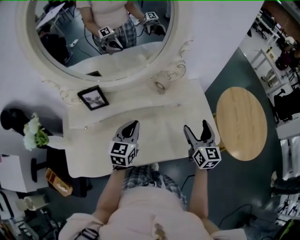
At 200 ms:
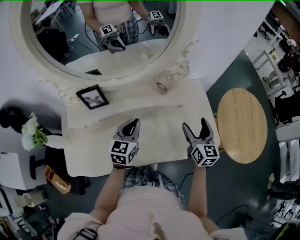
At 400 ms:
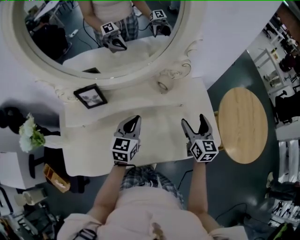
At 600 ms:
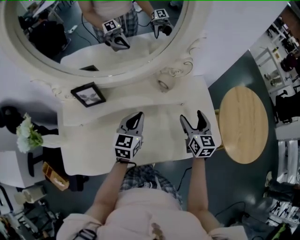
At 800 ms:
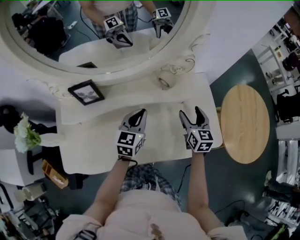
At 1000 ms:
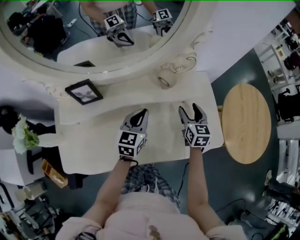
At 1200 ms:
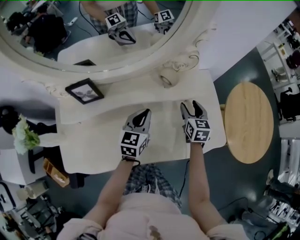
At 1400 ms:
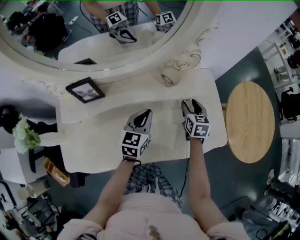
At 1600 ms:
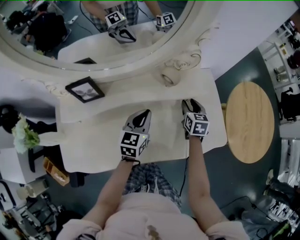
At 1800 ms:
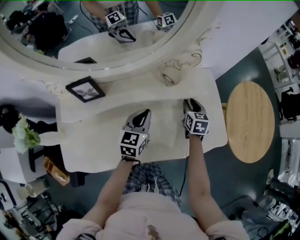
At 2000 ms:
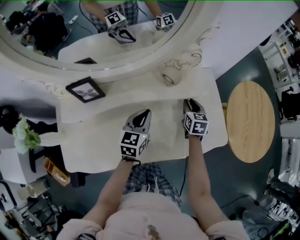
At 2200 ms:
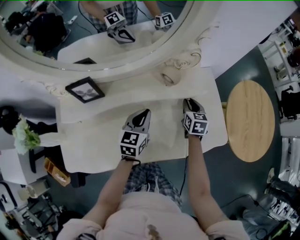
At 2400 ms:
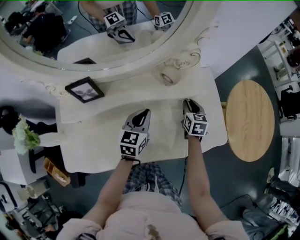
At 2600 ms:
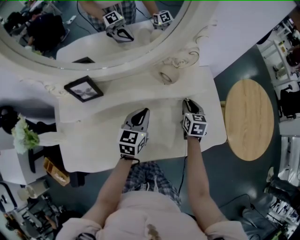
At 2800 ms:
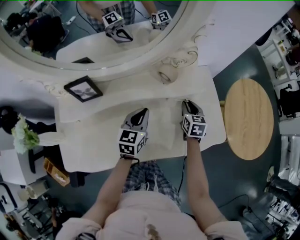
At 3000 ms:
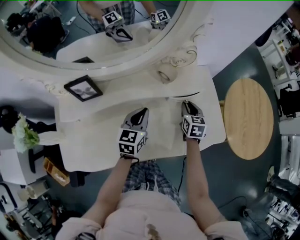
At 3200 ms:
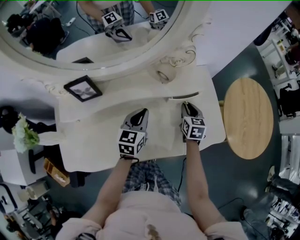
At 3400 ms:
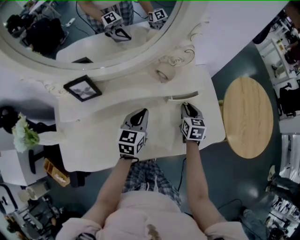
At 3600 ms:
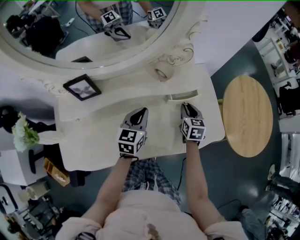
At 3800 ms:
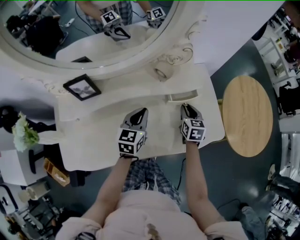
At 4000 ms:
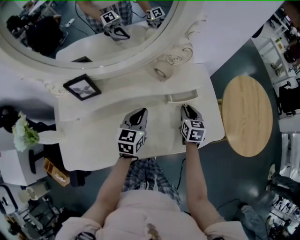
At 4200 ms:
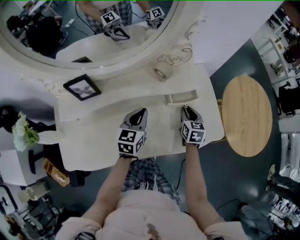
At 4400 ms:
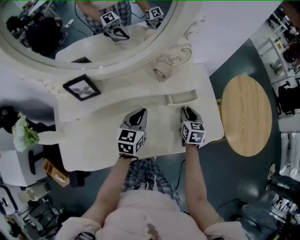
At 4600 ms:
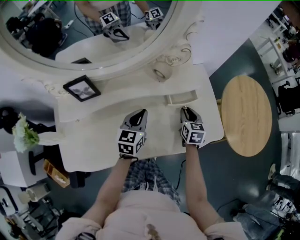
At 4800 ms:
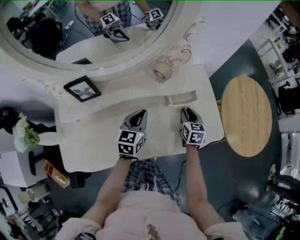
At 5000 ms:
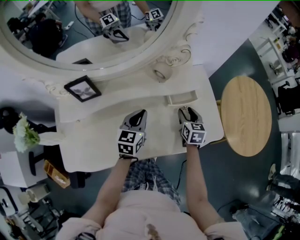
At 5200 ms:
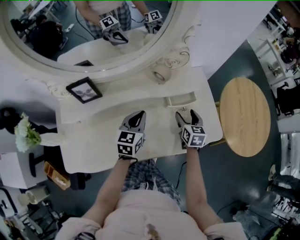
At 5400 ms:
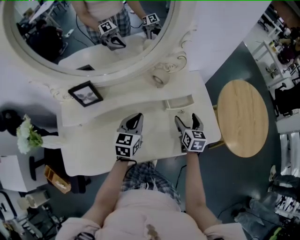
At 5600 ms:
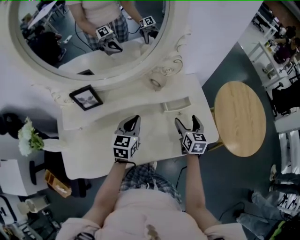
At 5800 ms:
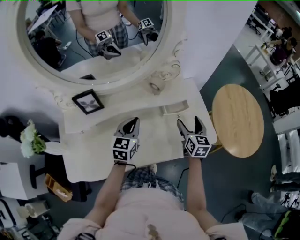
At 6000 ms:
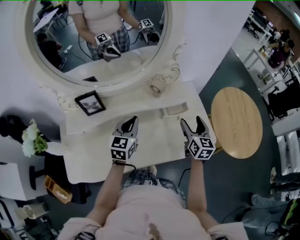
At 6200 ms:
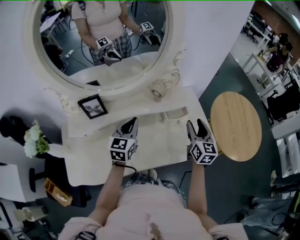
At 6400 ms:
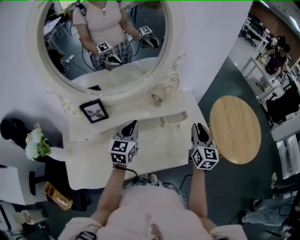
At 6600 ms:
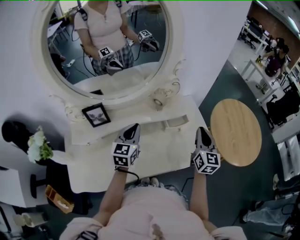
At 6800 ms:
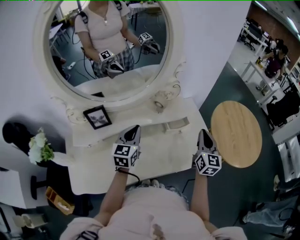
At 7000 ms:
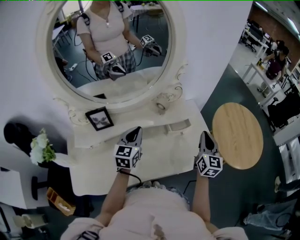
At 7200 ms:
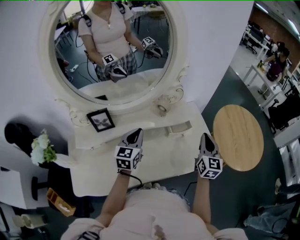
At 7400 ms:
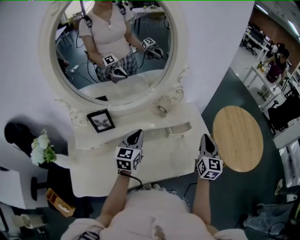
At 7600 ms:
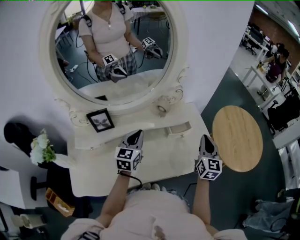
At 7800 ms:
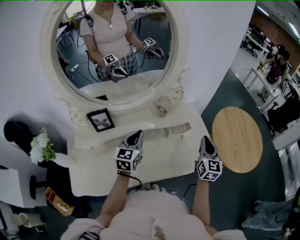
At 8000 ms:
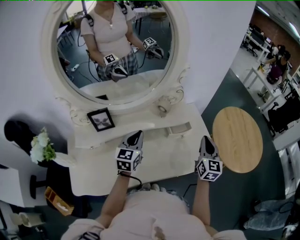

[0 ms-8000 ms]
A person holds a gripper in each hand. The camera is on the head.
0 ms to 1600 ms: The right gripper heads downward and forward, covering approximately 20 cm, rotates approximately 30 degrees, and closes its fingers; the left gripper moves downward and forward, approximately 10 cm.
1600 ms to 3200 ms: The grippers make only small movements.
3200 ms to 4800 ms: The grippers make only small movements.
4800 ms to 6400 ms: The right gripper moves upward, roughly 20 cm, swivels approximately 30 degrees, and opens, then closes again. Meanwhile the left gripper heads upward, covering roughly 10 cm.
6400 ms to 8000 ms: The grippers make only small movements.

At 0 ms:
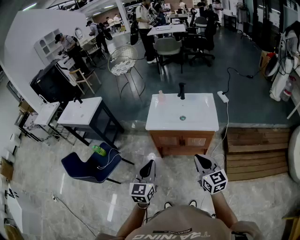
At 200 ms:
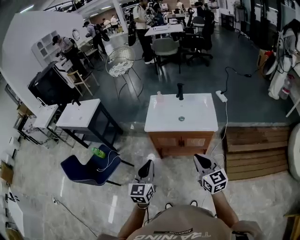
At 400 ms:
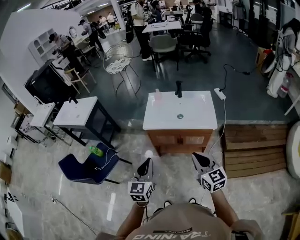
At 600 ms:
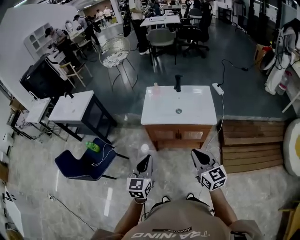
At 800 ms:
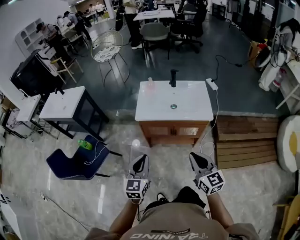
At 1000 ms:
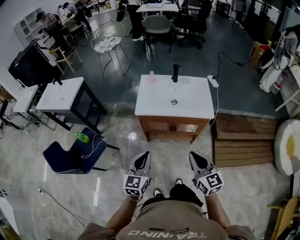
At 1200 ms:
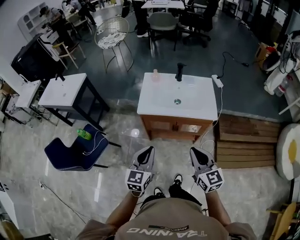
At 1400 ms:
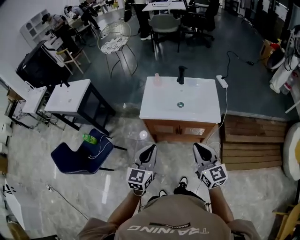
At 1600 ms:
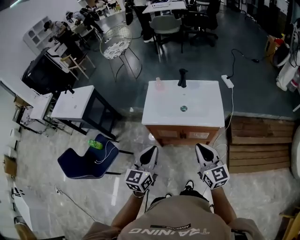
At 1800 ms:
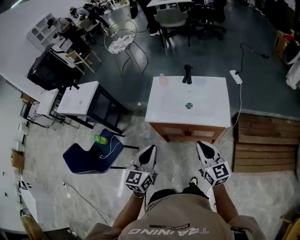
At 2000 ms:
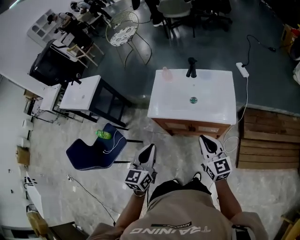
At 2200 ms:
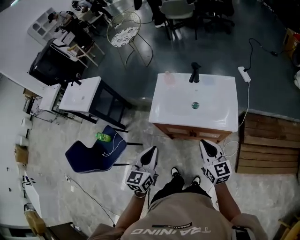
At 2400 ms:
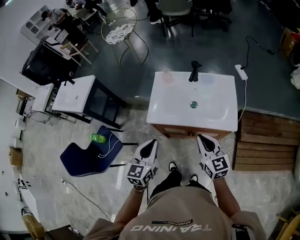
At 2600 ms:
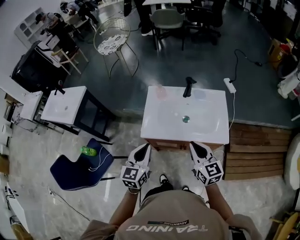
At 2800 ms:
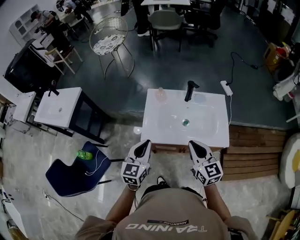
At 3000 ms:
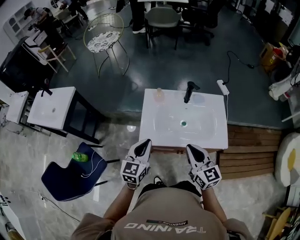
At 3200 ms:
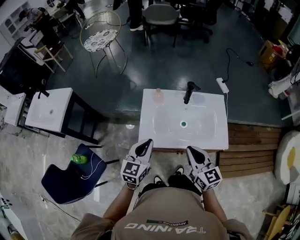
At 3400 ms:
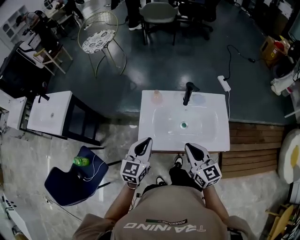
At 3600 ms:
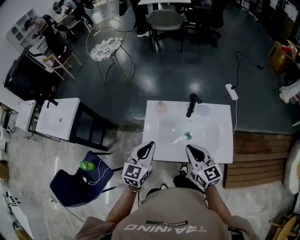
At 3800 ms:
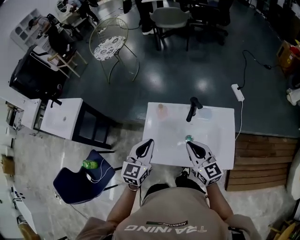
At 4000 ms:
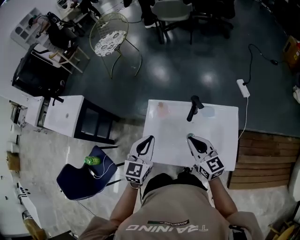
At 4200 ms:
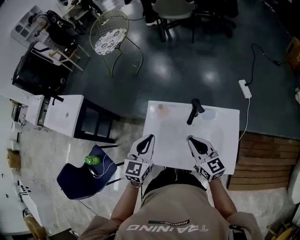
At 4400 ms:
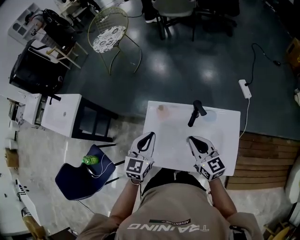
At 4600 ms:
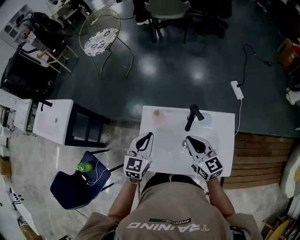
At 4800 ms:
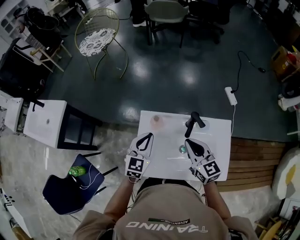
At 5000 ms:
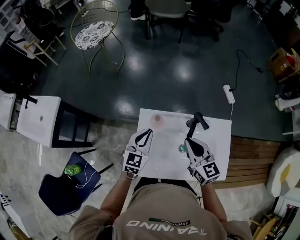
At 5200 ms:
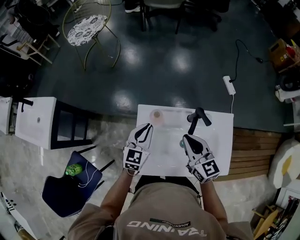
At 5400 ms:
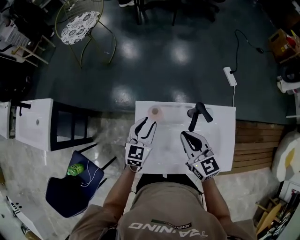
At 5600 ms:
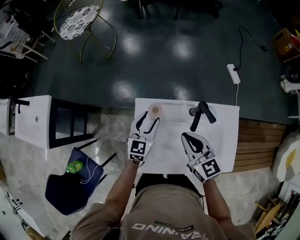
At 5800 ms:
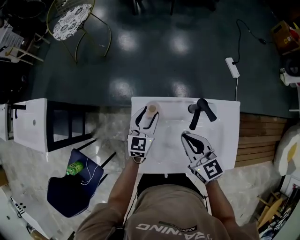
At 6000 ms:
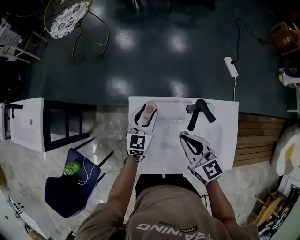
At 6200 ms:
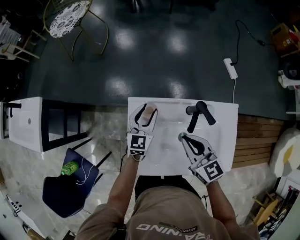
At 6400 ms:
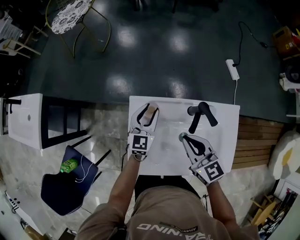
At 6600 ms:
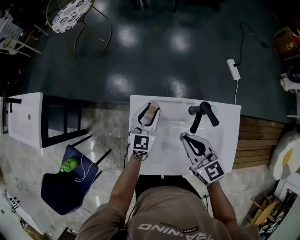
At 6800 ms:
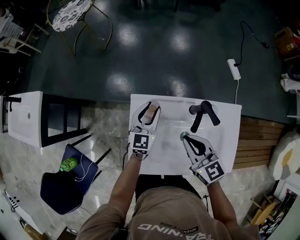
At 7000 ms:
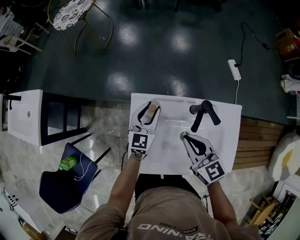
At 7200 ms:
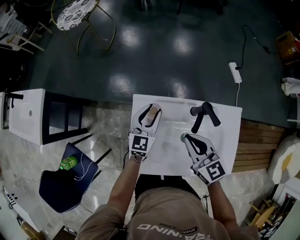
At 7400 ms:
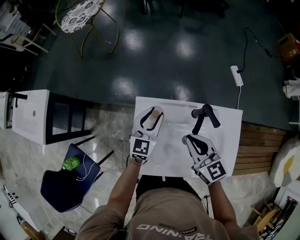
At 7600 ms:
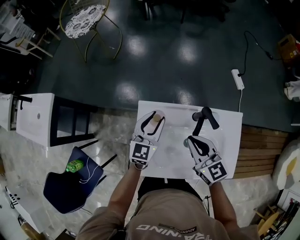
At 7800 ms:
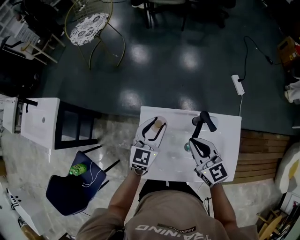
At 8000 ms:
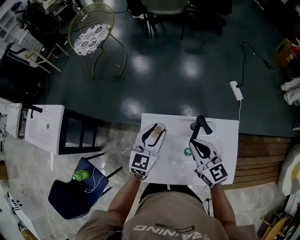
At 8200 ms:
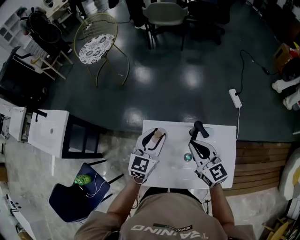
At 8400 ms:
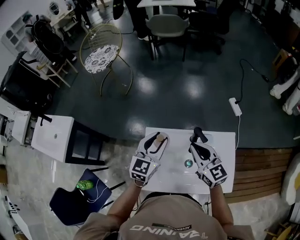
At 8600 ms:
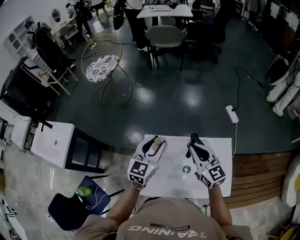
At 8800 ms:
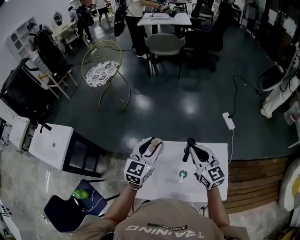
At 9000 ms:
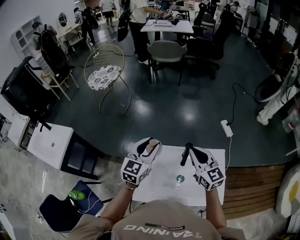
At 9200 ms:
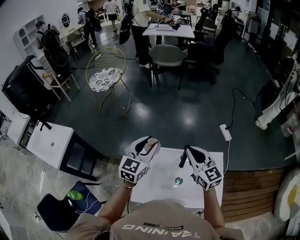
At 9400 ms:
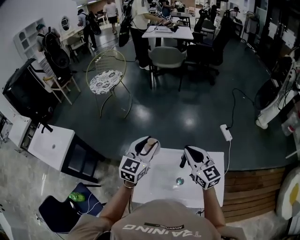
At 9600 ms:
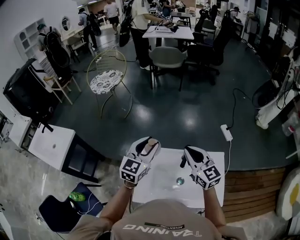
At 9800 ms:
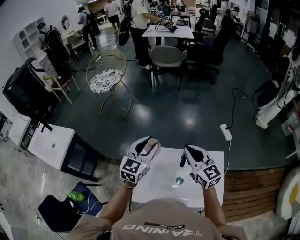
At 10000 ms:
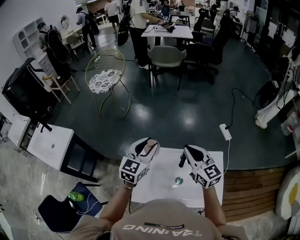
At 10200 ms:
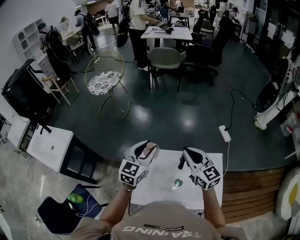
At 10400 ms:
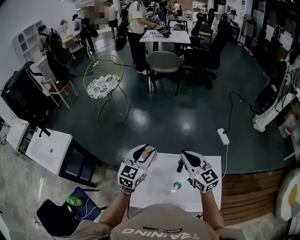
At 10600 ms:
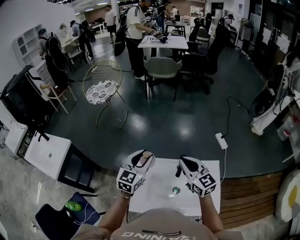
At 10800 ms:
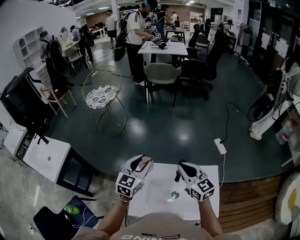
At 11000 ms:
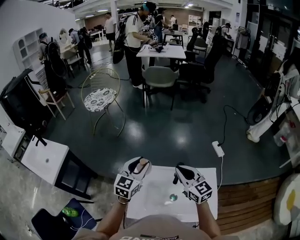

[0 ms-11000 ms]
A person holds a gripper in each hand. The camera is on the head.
0 ms to 1600 ms: The two grippers go approximately 10 cm forward.
1600 ms to 3200 ms: The left gripper heads forward, covering approximately 25 cm, while the right gripper goes roughly 25 cm forward and to the left.
3200 ms to 4800 ms: Both grippers move forward, about 25 cm.
4800 ms to 6200 ms: The left gripper is displaced downward and forward by approximately 15 cm, and opens its fingers, while the right gripper goes roughly 5 cm downward.
6200 ms to 7800 ms: The left gripper is displaced upward by approximately 10 cm.
7800 ms to 9400 ms: Both grippers travel together upward, about 15 cm.
9400 ms to 11000 ms: The grippers move only a little.

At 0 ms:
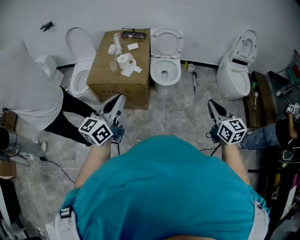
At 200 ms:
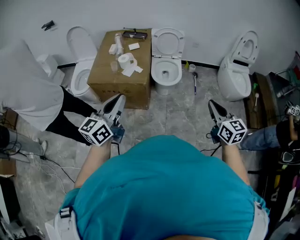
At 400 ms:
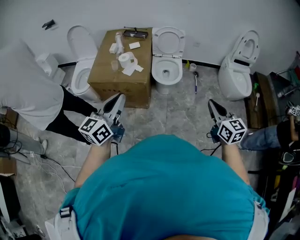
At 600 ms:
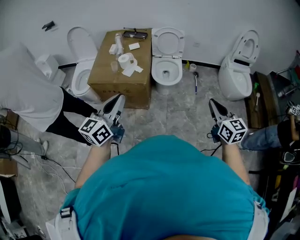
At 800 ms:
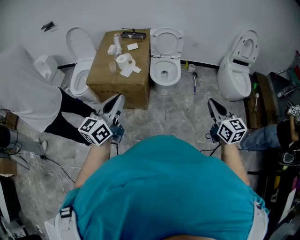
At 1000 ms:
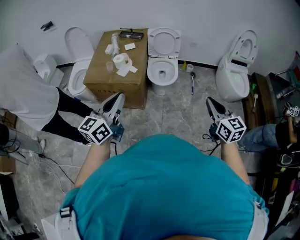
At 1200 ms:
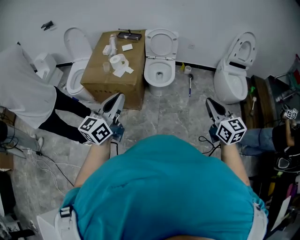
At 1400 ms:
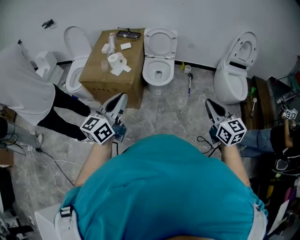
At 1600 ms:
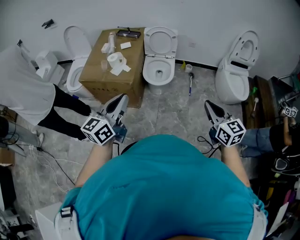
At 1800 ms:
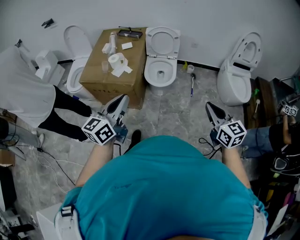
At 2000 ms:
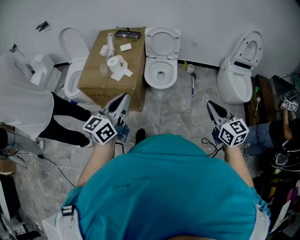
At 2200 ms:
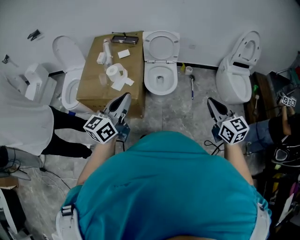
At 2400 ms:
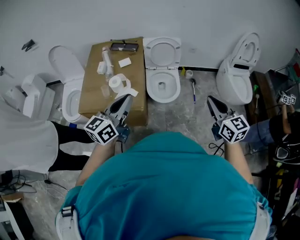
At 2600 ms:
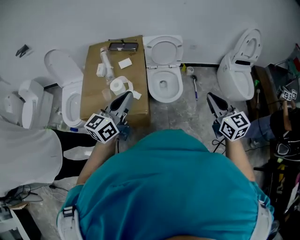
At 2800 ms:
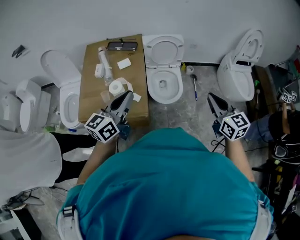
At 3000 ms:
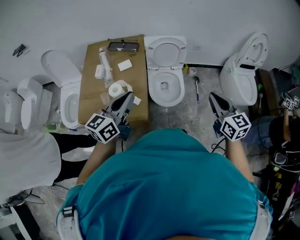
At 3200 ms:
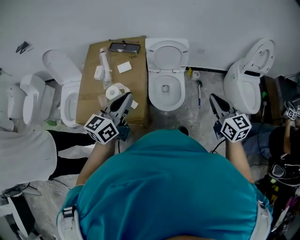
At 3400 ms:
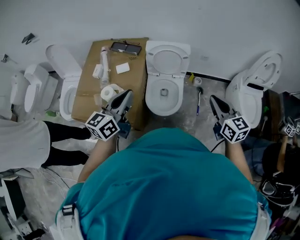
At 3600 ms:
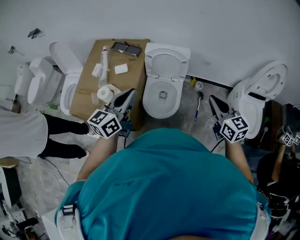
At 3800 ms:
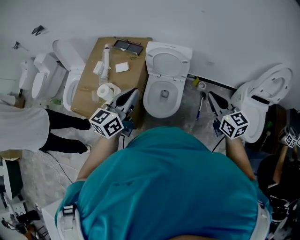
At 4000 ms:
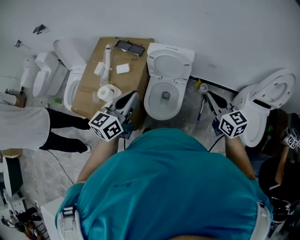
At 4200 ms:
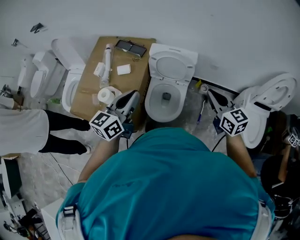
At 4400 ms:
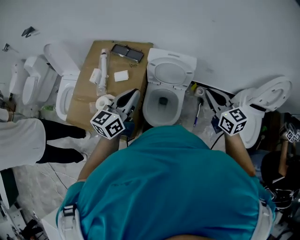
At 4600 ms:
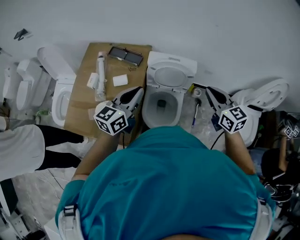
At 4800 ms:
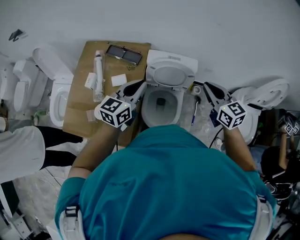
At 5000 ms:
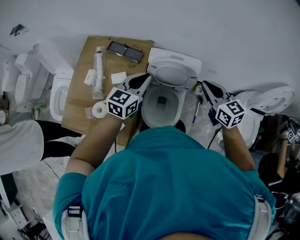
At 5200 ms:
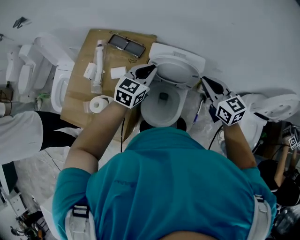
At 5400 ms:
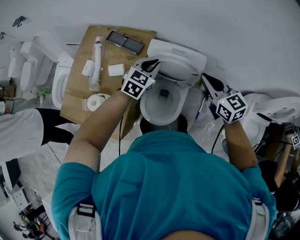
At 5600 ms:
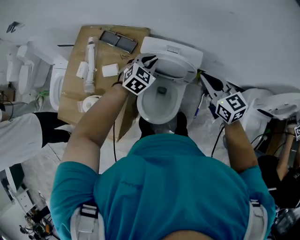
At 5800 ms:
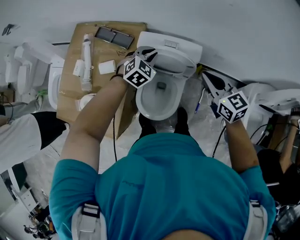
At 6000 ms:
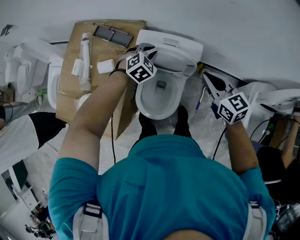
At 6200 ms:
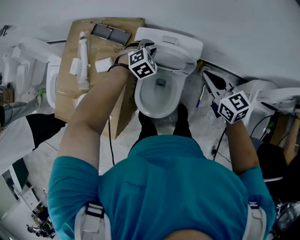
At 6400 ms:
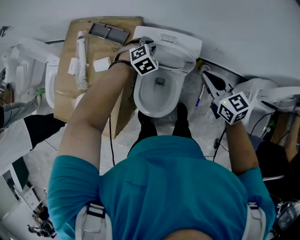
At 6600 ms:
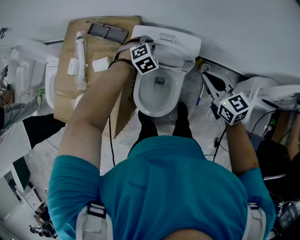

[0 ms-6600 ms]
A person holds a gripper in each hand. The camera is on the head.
0 ms to 1600 ms: The two grippers go some 15 cm to the right.
1600 ms to 3200 ms: Both grippers are carried forward, roughly 40 cm.
3200 ms to 5000 ms: The two grippers go about 35 cm forward.
5000 ms to 6600 ms: The left gripper travels downward, forward and to the right by some 30 cm, and angles its fingers downward, by about 40 degrees. The right gripper moves downward and to the right, some 15 cm.
